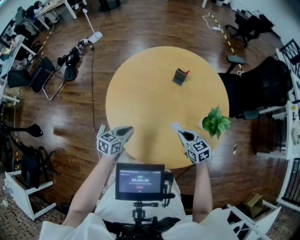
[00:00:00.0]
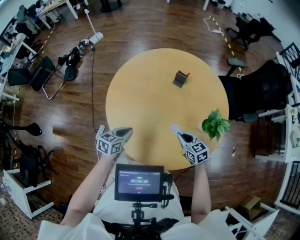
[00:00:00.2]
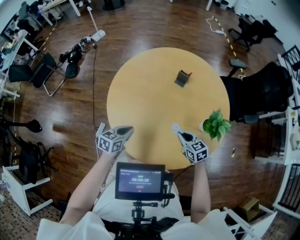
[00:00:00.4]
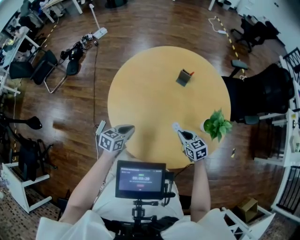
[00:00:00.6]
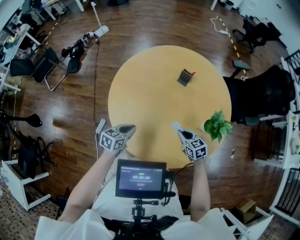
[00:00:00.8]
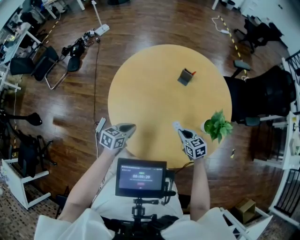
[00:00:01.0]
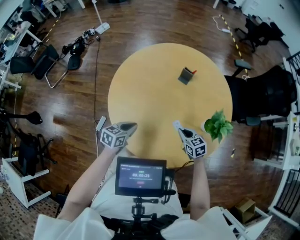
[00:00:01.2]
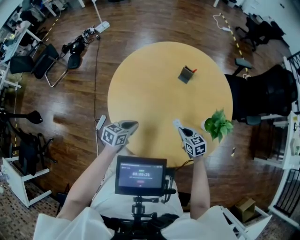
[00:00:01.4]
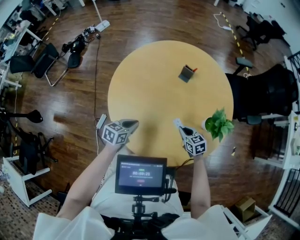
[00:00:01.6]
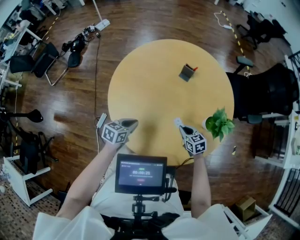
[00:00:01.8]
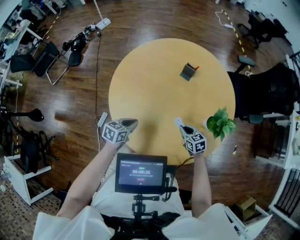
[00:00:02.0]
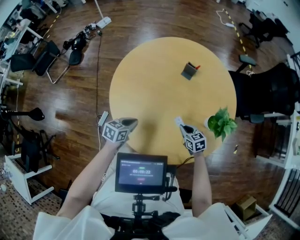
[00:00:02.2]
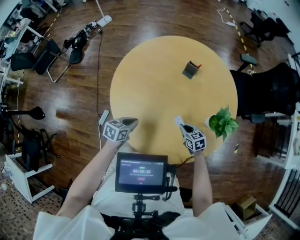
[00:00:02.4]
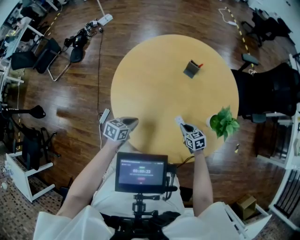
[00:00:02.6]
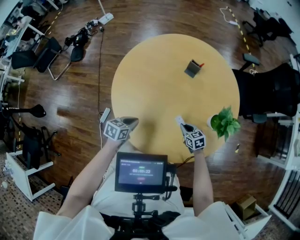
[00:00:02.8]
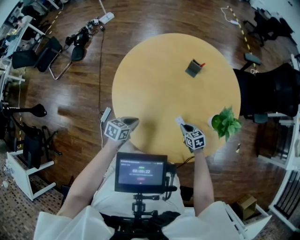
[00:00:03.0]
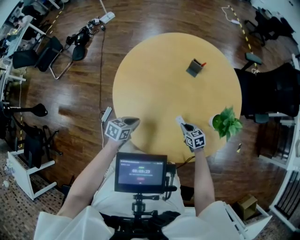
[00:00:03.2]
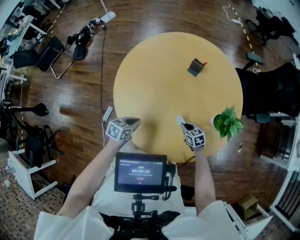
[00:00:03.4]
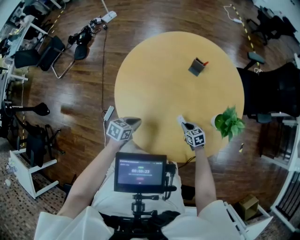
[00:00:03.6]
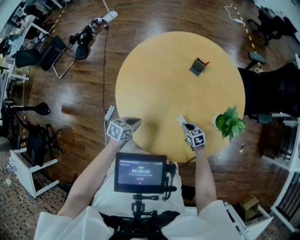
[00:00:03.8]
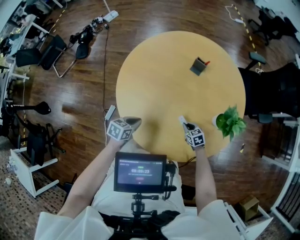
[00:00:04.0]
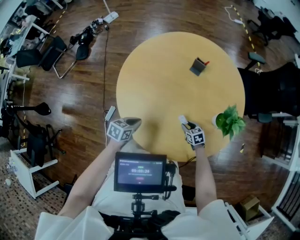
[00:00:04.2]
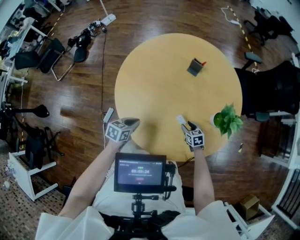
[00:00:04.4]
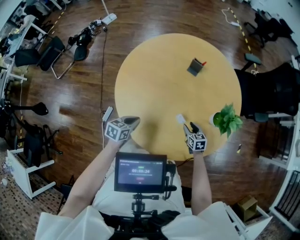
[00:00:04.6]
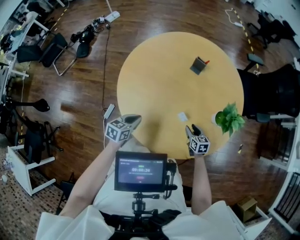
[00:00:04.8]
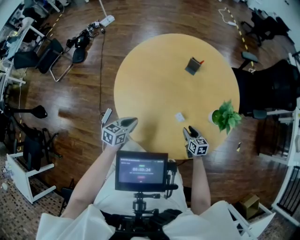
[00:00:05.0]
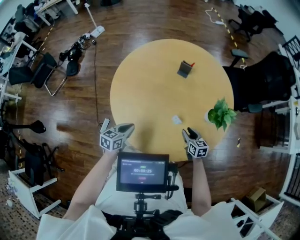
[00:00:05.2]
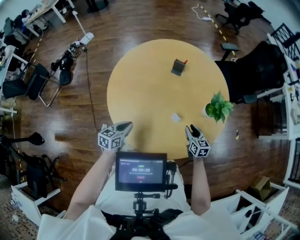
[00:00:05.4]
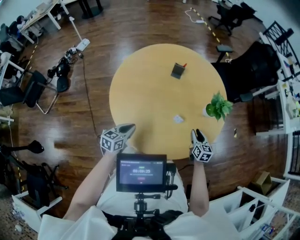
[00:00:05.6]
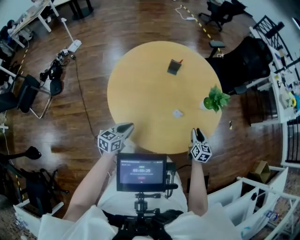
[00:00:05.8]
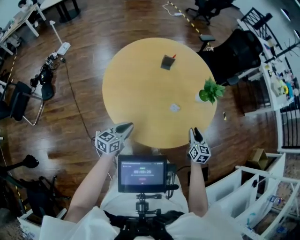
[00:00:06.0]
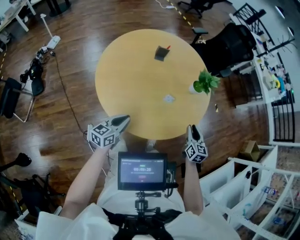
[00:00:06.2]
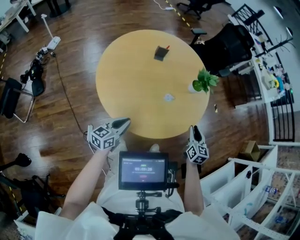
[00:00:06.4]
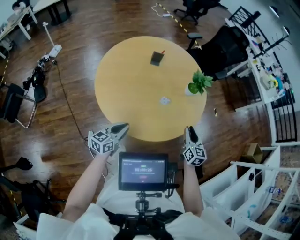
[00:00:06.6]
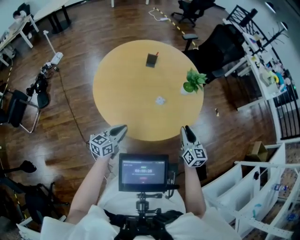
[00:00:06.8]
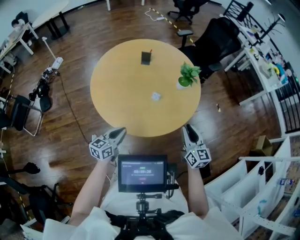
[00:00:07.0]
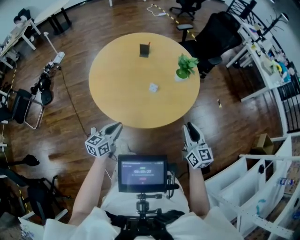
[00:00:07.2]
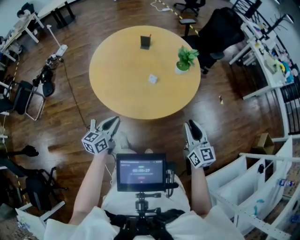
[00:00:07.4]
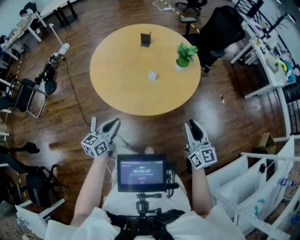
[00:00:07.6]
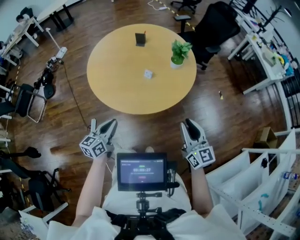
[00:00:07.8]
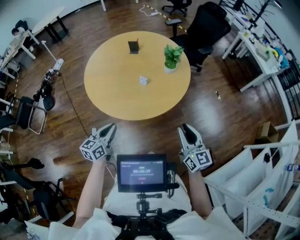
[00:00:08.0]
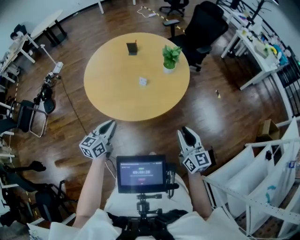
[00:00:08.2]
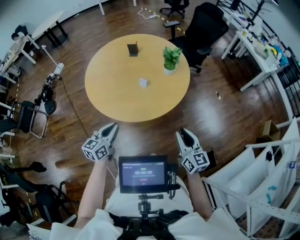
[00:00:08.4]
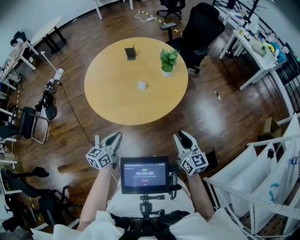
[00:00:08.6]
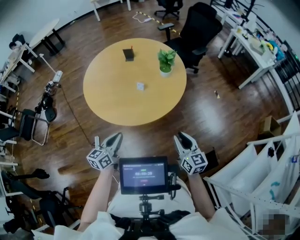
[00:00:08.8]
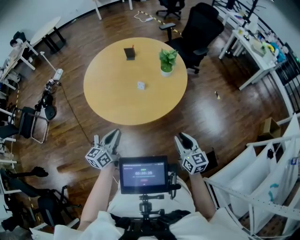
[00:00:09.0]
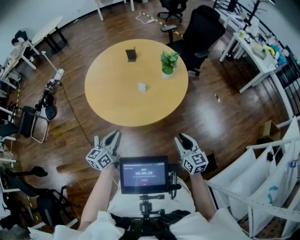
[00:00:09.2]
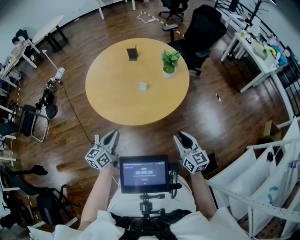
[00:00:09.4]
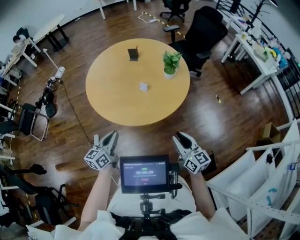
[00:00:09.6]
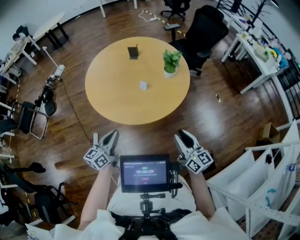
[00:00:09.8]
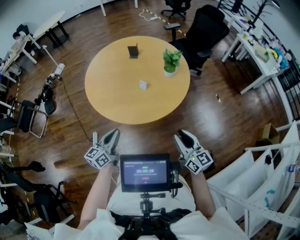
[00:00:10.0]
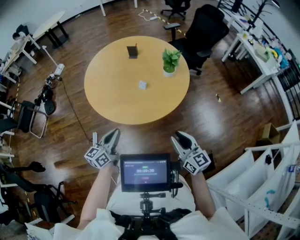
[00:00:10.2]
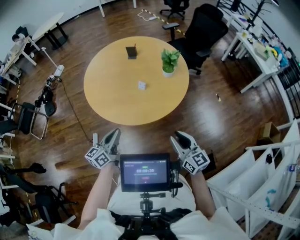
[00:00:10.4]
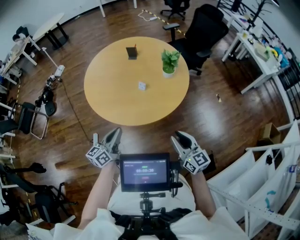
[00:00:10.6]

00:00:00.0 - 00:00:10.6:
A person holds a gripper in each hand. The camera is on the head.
00:00:00.0 - 00:00:01.6: The right gripper shifts some 10 cm downward.
00:00:01.6 - 00:00:03.0: The right gripper travels downward by about 10 cm, while the left gripper shifts by about 5 cm.
00:00:03.0 - 00:00:04.6: The right gripper opens.
00:00:04.6 - 00:00:06.0: The left gripper ends up some 10 cm from where it was, and swivels approximately 30 degrees; the right gripper travels upward by about 20 cm, and swivels approximately 40 degrees.
00:00:06.0 - 00:00:07.6: The right gripper heads backward, upward and to the right, covering roughly 30 cm, and swivels about 30 degrees. The left gripper goes some 25 cm to the right and backward.
00:00:07.6 - 00:00:09.0: The right gripper heads backward and downward, covering approximately 10 cm. Meanwhile the left gripper shifts by approximately 5 cm.
00:00:09.0 - 00:00:10.6: There are only small adjustments of the grippers.

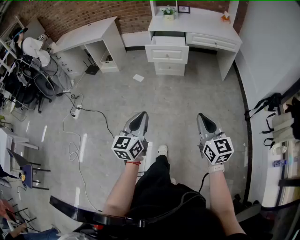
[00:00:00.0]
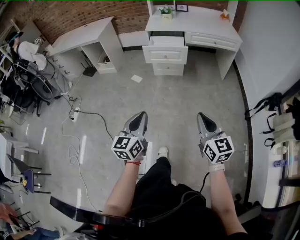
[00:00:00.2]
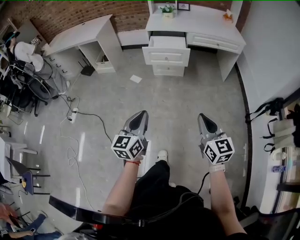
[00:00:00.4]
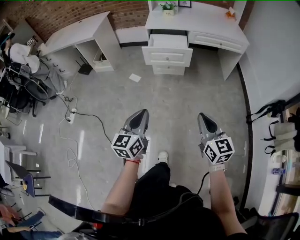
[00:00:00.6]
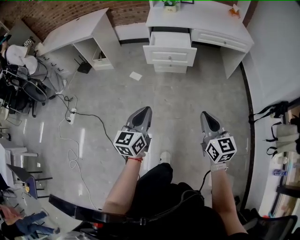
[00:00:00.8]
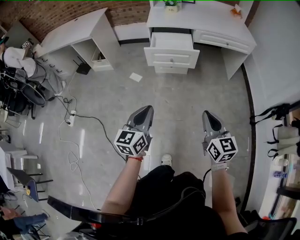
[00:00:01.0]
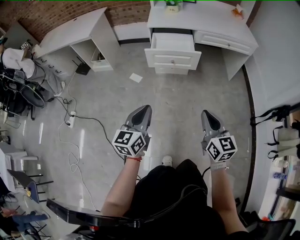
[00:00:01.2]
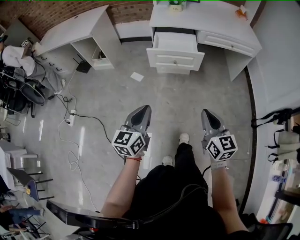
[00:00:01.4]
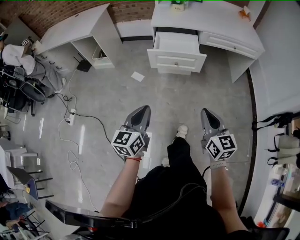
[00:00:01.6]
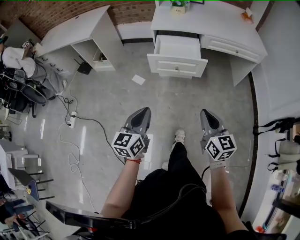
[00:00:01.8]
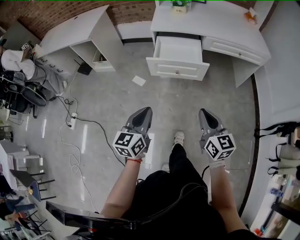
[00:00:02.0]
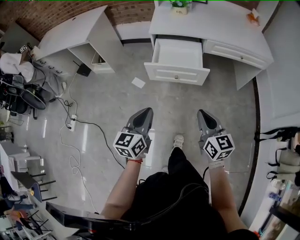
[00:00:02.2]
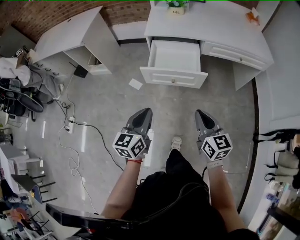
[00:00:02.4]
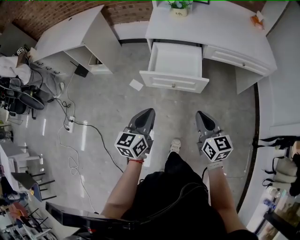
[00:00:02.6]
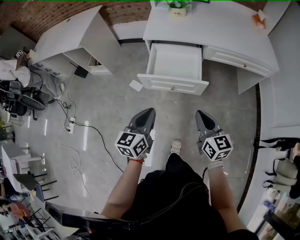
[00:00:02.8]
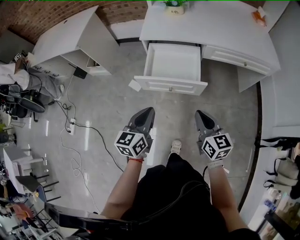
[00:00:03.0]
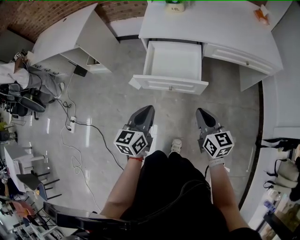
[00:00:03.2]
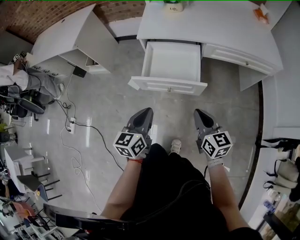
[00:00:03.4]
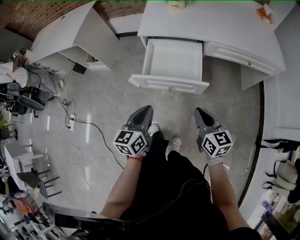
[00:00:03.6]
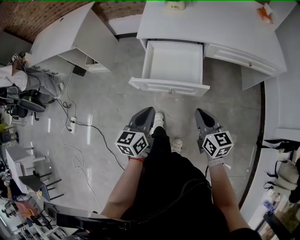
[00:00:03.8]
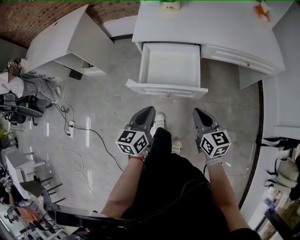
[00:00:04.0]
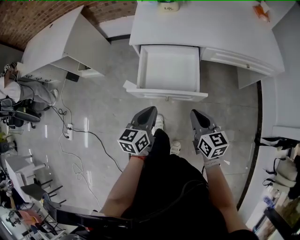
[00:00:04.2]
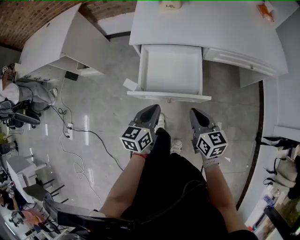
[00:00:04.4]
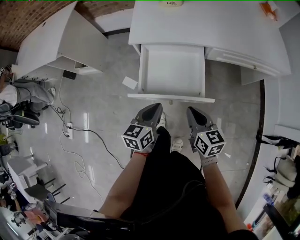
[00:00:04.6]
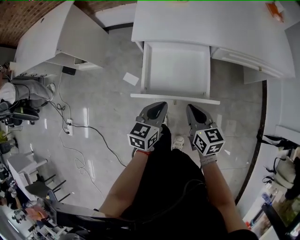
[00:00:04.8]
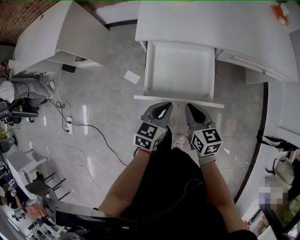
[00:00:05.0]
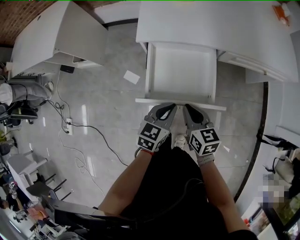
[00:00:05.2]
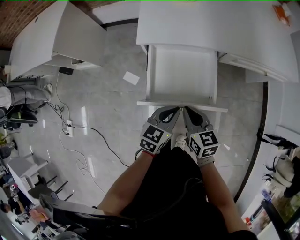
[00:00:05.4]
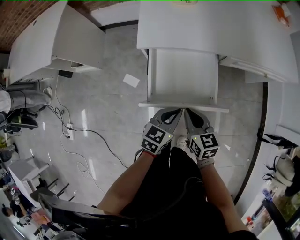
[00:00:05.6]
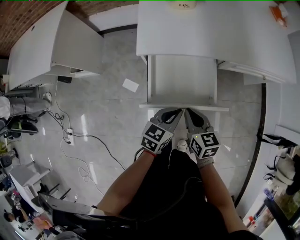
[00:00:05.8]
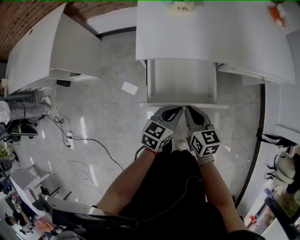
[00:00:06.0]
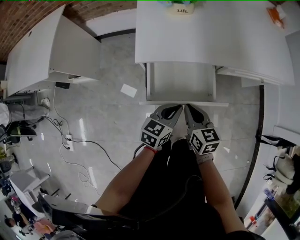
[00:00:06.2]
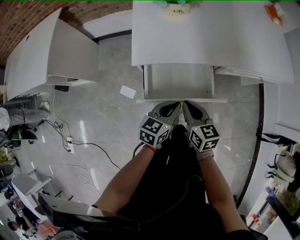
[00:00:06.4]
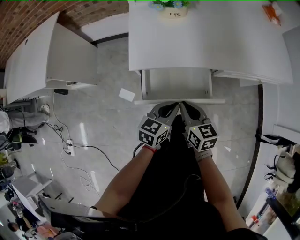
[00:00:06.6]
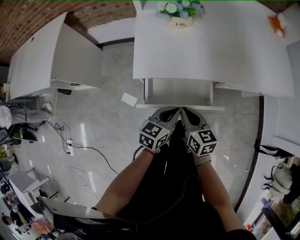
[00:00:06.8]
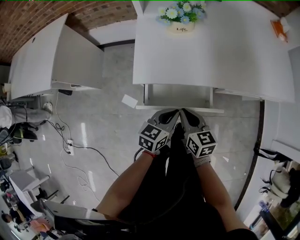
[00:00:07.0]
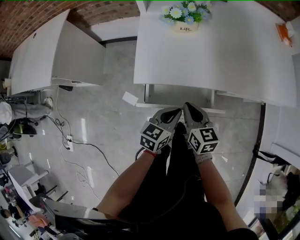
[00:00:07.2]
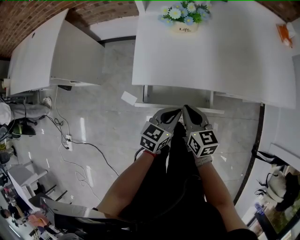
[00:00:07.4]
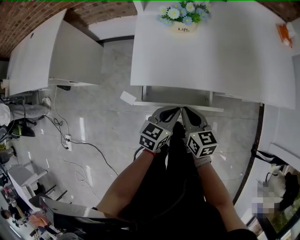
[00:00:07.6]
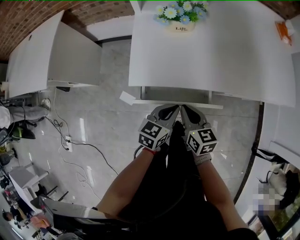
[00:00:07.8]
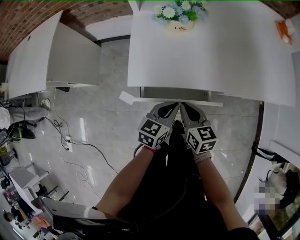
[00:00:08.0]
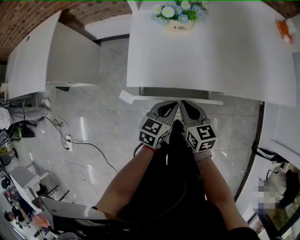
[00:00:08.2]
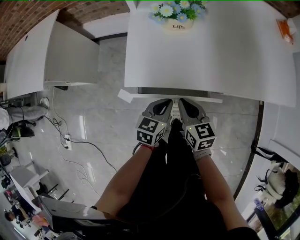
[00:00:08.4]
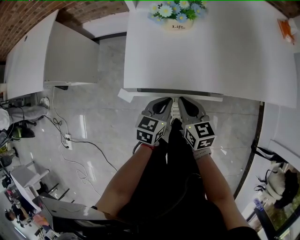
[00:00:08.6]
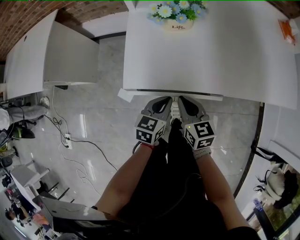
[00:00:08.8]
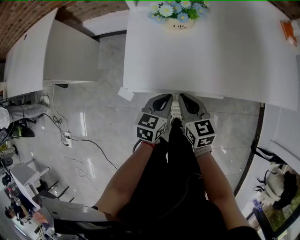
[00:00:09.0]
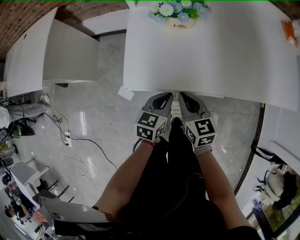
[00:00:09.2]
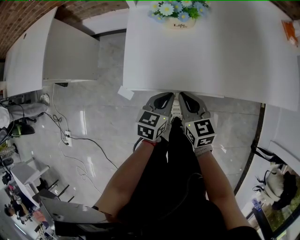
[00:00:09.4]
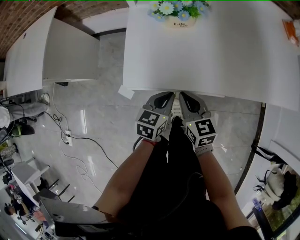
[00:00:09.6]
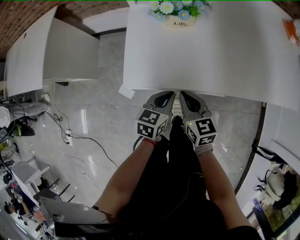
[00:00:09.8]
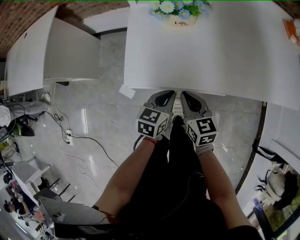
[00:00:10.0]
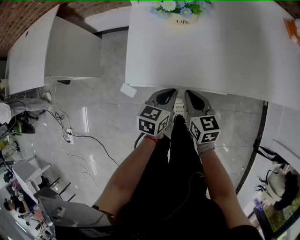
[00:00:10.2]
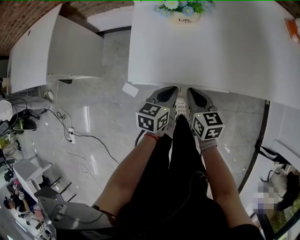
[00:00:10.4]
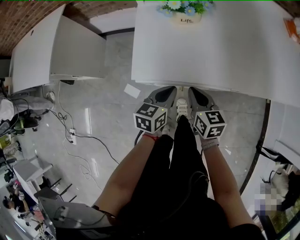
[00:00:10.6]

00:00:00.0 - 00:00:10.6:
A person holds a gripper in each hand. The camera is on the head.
00:00:00.0 - 00:00:01.6: Both grippers travel together forward, about 30 cm.
00:00:01.6 - 00:00:03.0: Both grippers travel together forward, approximately 25 cm.
00:00:03.0 - 00:00:04.6: The two grippers go approximately 15 cm forward and downward.
00:00:04.6 - 00:00:06.0: The left gripper shifts some 10 cm forward, and changes its angle by approximately 20 degrees, while the right gripper travels forward and to the left by some 15 cm.
00:00:06.0 - 00:00:07.6: Both grippers travel together forward, about 10 cm.
00:00:07.6 - 00:00:09.0: The two grippers go about 5 cm forward.
00:00:09.0 - 00:00:10.6: The grippers make only small movements.

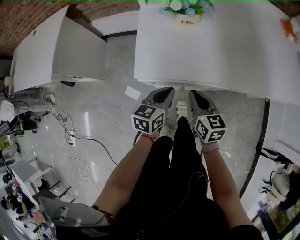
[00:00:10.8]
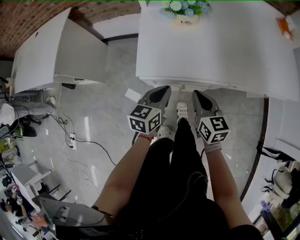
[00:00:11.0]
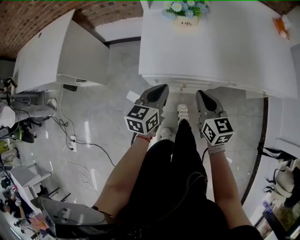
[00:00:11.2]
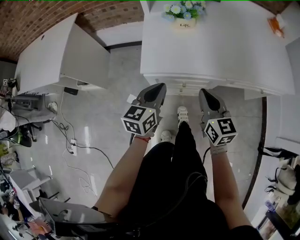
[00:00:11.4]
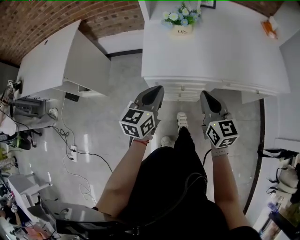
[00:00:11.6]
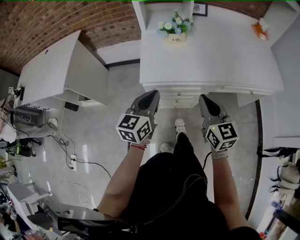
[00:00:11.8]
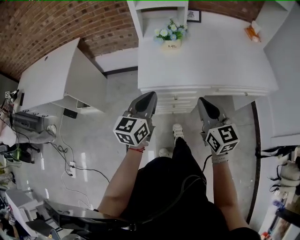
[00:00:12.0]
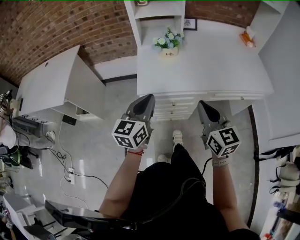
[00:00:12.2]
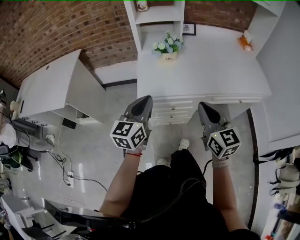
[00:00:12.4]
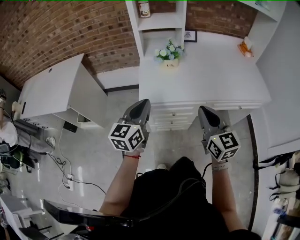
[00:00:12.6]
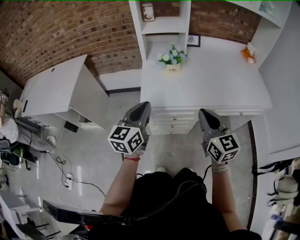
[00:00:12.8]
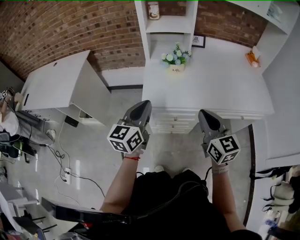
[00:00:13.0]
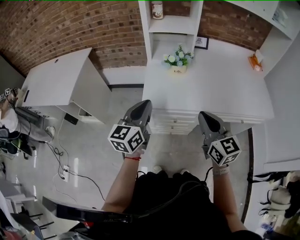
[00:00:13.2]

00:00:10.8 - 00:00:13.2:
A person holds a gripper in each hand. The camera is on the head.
00:00:10.8 - 00:00:12.0: The two grippers go about 20 cm upward and backward. The left gripper rotates approximately 20 degrees, while the right gripper turns by roughly 30 degrees.
00:00:12.0 - 00:00:13.2: The two grippers go some 5 cm upward.
